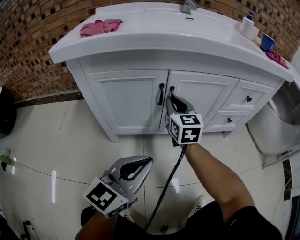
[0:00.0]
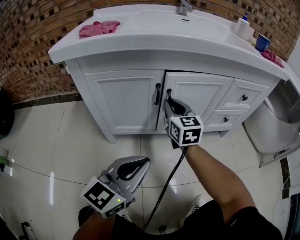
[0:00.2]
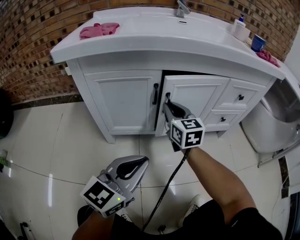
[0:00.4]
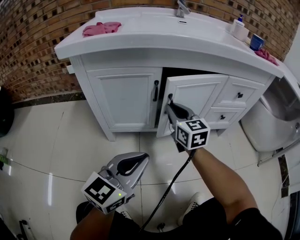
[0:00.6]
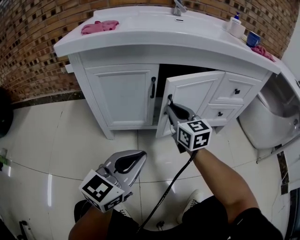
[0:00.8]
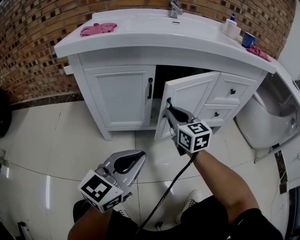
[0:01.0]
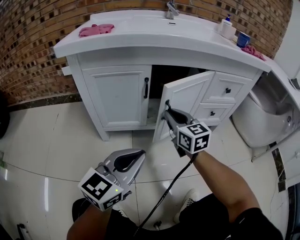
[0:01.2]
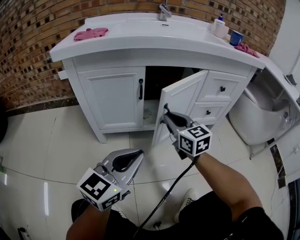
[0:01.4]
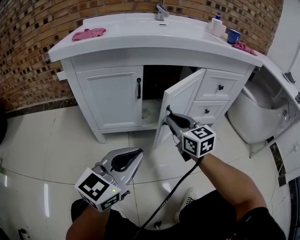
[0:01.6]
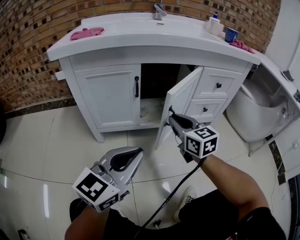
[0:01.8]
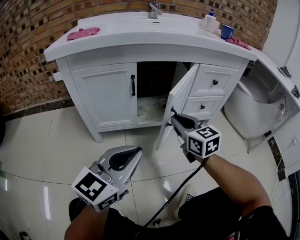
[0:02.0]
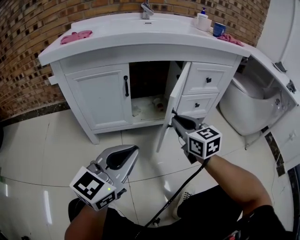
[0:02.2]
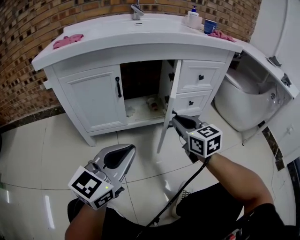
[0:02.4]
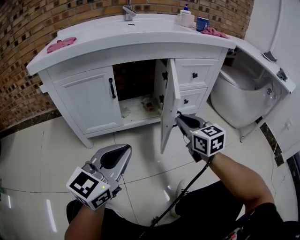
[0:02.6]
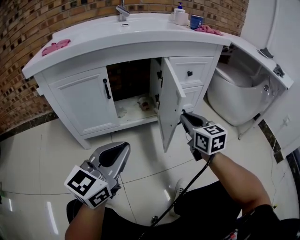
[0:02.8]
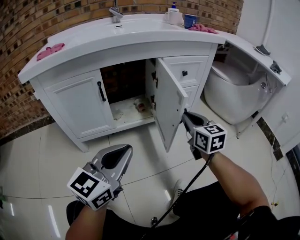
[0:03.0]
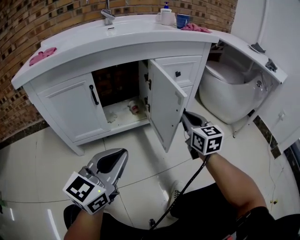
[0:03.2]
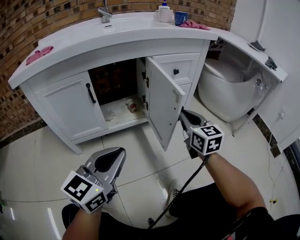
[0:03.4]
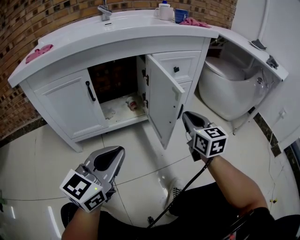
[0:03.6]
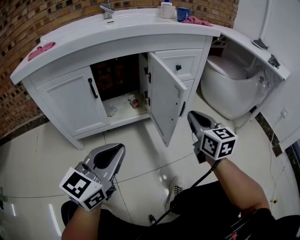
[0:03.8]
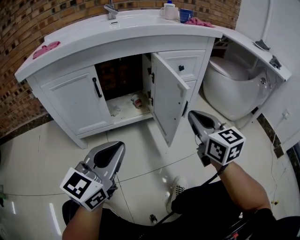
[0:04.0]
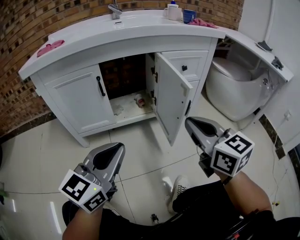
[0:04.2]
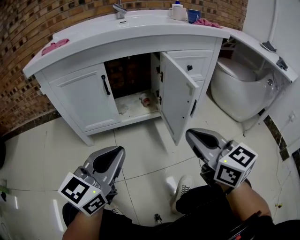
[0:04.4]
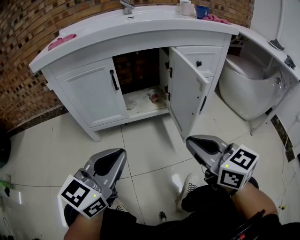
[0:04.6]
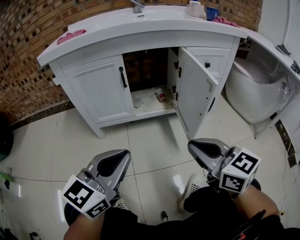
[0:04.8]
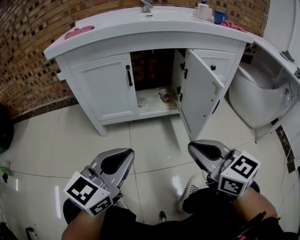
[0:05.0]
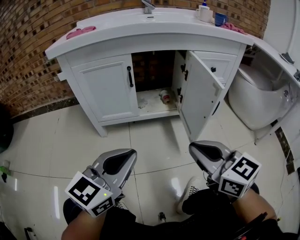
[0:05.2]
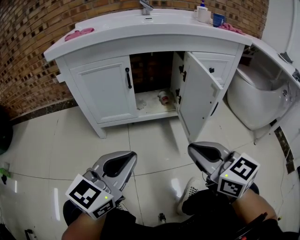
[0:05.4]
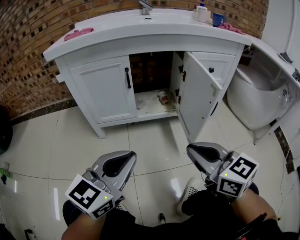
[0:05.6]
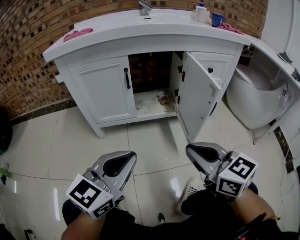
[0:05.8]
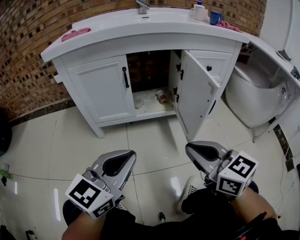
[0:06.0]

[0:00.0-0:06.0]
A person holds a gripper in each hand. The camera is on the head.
0:00.0 to 0:01.6: The right gripper shifts about 15 cm backward and to the right. The left gripper shifts some 5 cm backward.
0:01.6 to 0:03.0: The right gripper shifts some 20 cm to the right, and rotates approximately 20 degrees; the left gripper is displaced to the right by some 10 cm.
0:03.0 to 0:04.4: The right gripper shifts roughly 15 cm backward and upward, and changes its angle by roughly 20 degrees.
0:04.4 to 0:06.0: The right gripper travels to the left by some 5 cm.

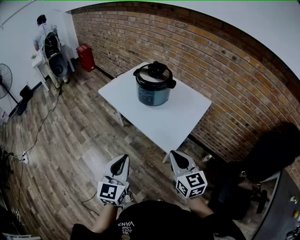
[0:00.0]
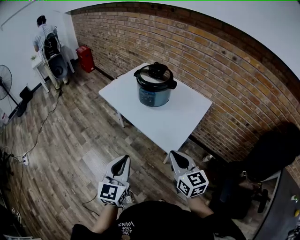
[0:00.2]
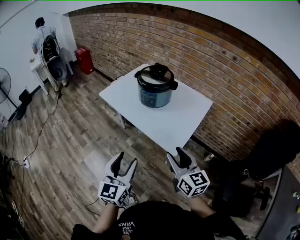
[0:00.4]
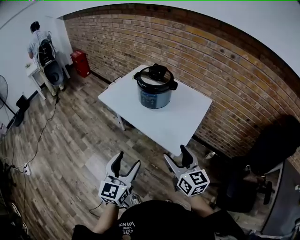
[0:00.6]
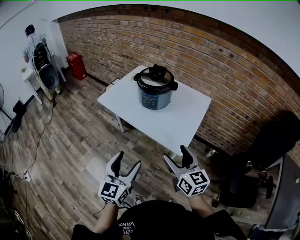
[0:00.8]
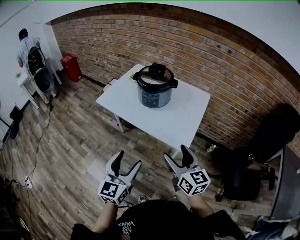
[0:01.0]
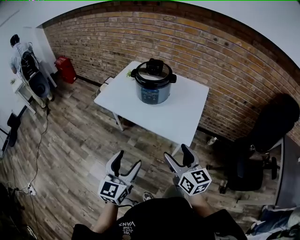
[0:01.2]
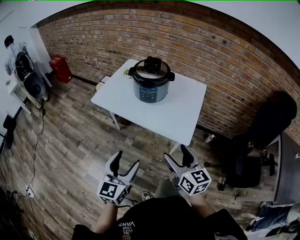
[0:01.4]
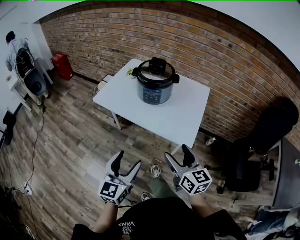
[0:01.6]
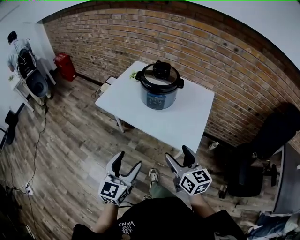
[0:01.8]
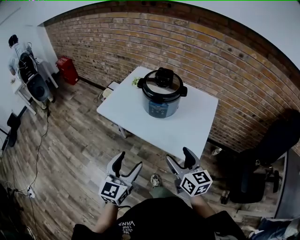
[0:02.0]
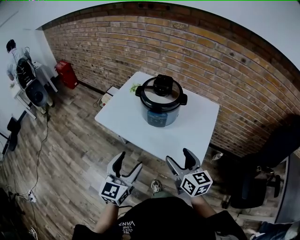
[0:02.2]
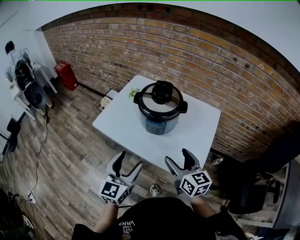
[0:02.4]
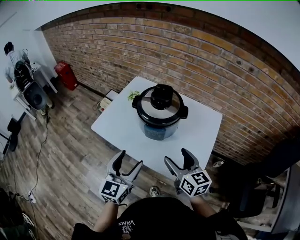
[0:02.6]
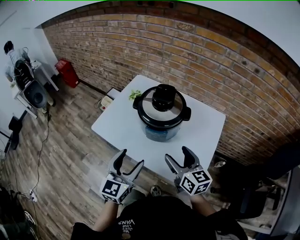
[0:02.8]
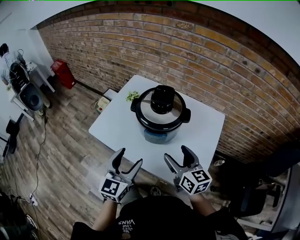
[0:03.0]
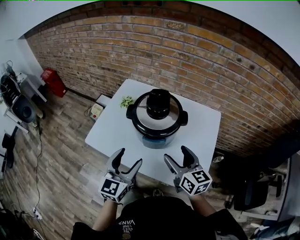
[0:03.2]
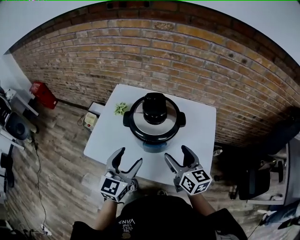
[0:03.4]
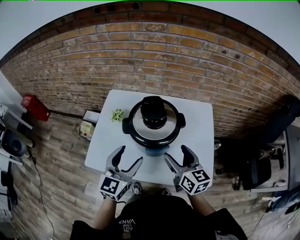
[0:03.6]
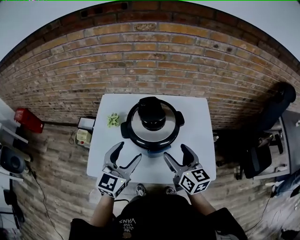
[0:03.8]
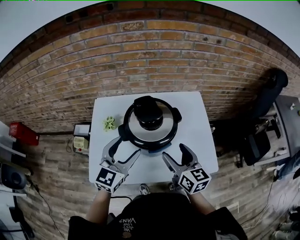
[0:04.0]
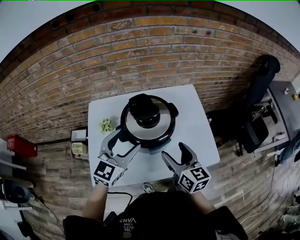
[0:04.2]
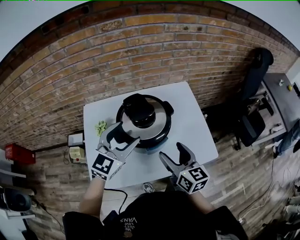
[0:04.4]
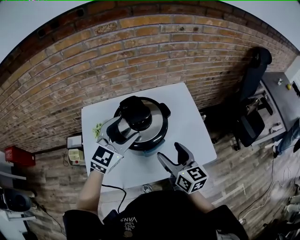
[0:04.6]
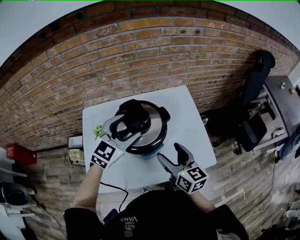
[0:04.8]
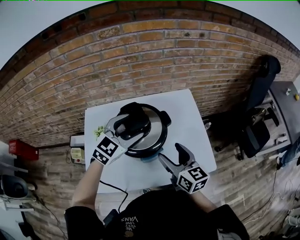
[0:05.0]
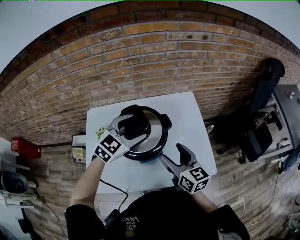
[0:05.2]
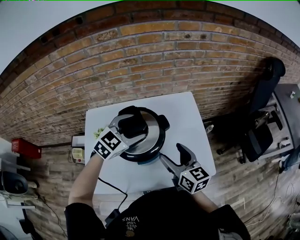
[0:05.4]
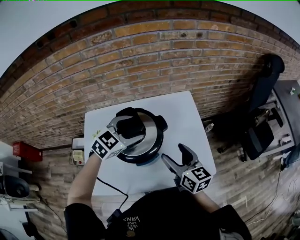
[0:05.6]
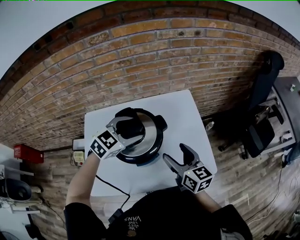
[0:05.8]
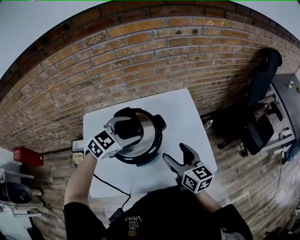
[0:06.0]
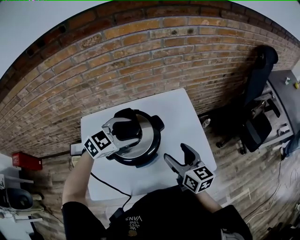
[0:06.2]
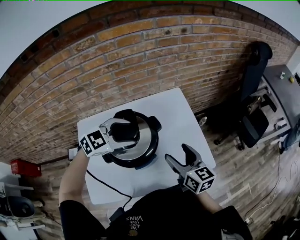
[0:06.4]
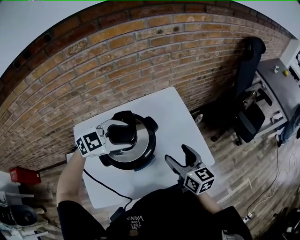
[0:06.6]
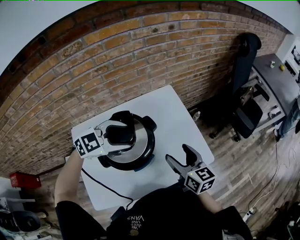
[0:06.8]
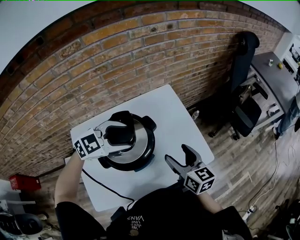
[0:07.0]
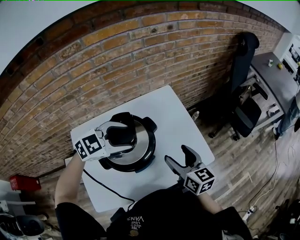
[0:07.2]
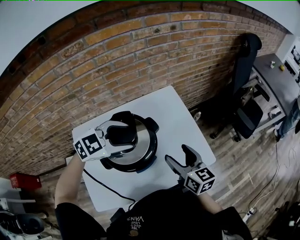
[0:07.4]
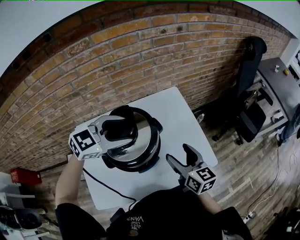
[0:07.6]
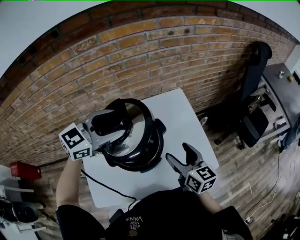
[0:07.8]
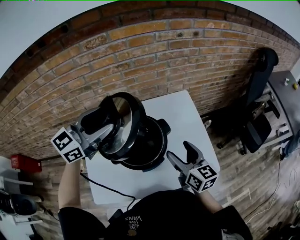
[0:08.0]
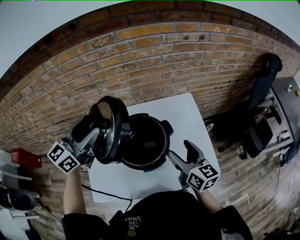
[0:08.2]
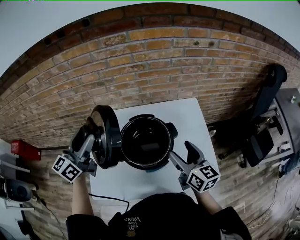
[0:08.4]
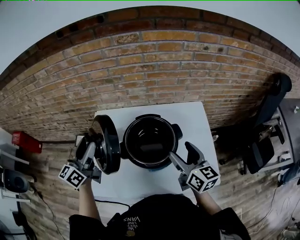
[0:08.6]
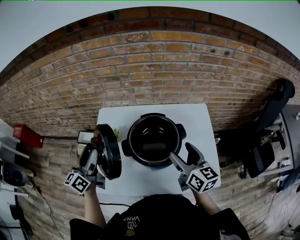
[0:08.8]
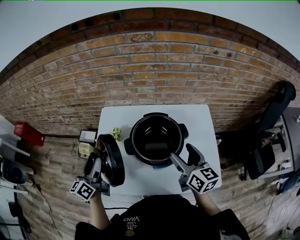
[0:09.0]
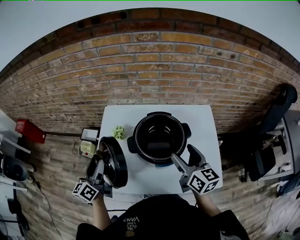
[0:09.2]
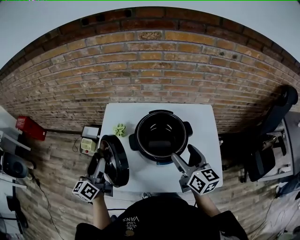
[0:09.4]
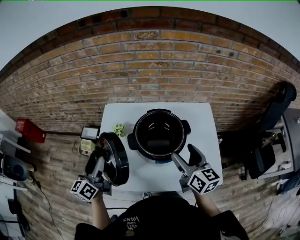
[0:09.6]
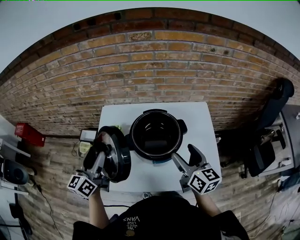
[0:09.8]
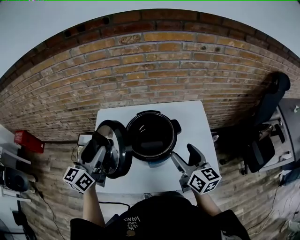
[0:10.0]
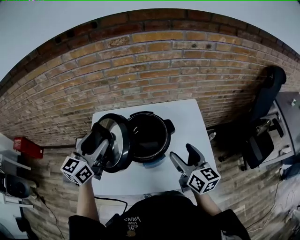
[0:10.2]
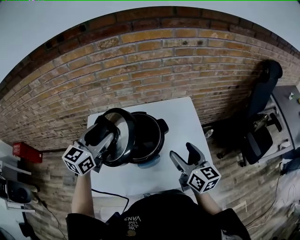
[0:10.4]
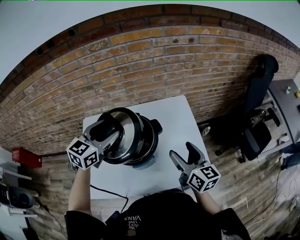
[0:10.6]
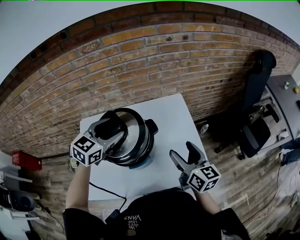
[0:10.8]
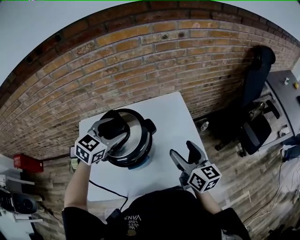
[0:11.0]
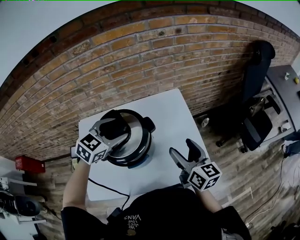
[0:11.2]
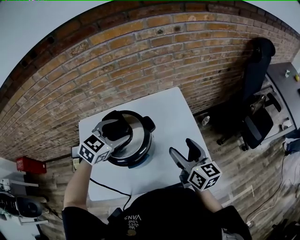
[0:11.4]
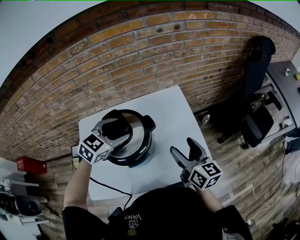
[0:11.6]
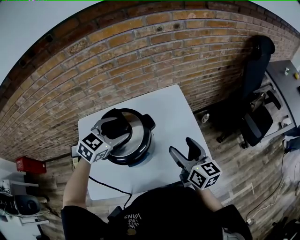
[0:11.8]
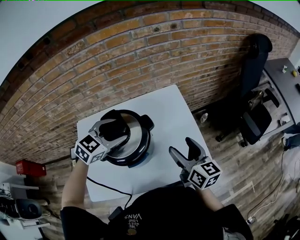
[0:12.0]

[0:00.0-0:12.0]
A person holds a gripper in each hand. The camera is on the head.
0:00.0 to 0:01.6: The right gripper heads to the left, covering some 10 cm, rotates roughly 20 degrees, and opens. The left gripper goes some 15 cm to the left and forward, changes its angle by about 20 degrees, and opens.
0:01.6 to 0:03.0: The grippers both shift forward by roughly 30 cm.
0:03.0 to 0:04.4: The left gripper ends up about 20 cm from where it was, and rotates roughly 50 degrees. Meanwhile the right gripper moves about 5 cm, and rotates about 40 degrees.
0:04.4 to 0:06.0: The grippers both shift forward and to the right by roughly 10 cm. The left gripper turns by some 30 degrees.
0:06.0 to 0:07.6: The left gripper travels upward by some 5 cm.
0:07.6 to 0:09.0: The left gripper changes place by some 35 cm, and swivels approximately 100 degrees, while the right gripper shifts by roughly 10 cm.
0:09.0 to 0:10.4: The right gripper shifts roughly 5 cm to the right, while the left gripper moves to the right, upward and forward, roughly 20 cm, and turns by approximately 50 degrees.
0:10.4 to 0:12.0: The left gripper travels to the right, downward and forward by roughly 15 cm, and changes its angle by some 40 degrees; the right gripper shifts some 5 cm to the right.

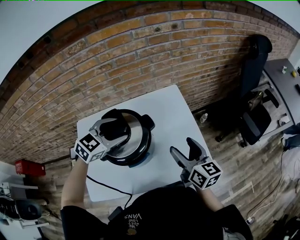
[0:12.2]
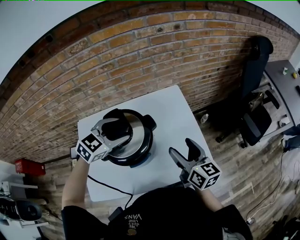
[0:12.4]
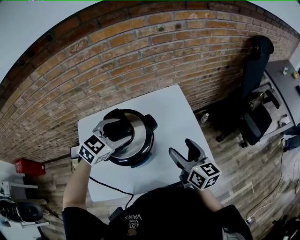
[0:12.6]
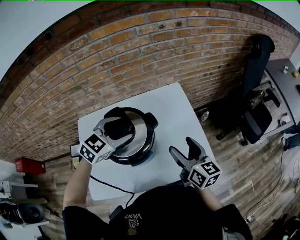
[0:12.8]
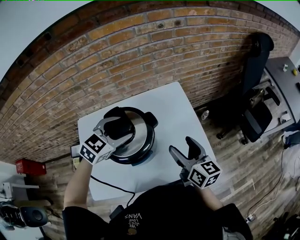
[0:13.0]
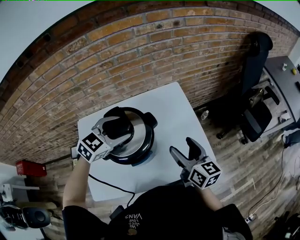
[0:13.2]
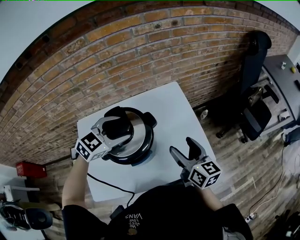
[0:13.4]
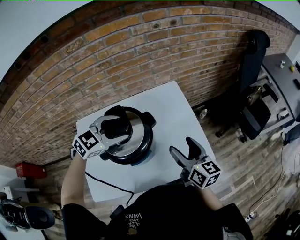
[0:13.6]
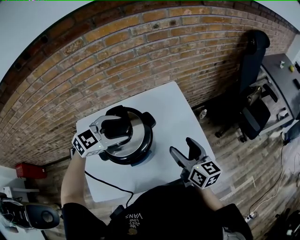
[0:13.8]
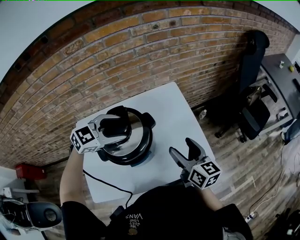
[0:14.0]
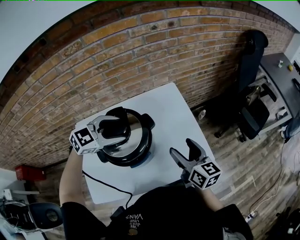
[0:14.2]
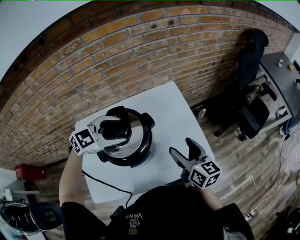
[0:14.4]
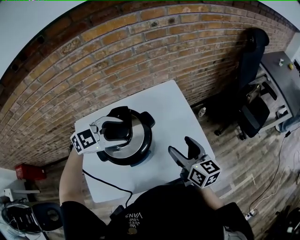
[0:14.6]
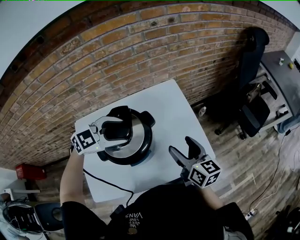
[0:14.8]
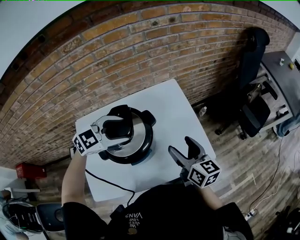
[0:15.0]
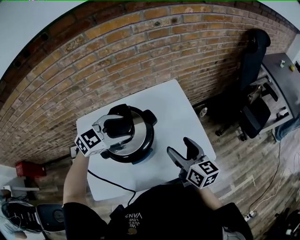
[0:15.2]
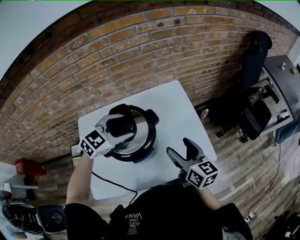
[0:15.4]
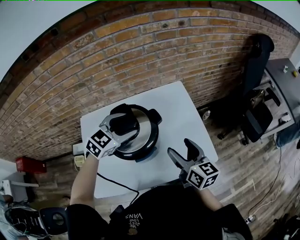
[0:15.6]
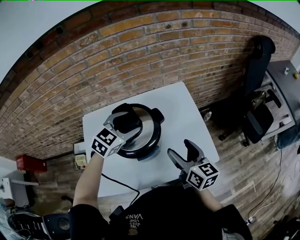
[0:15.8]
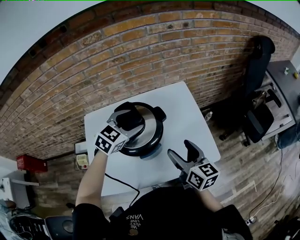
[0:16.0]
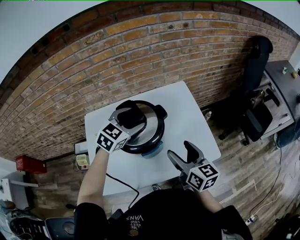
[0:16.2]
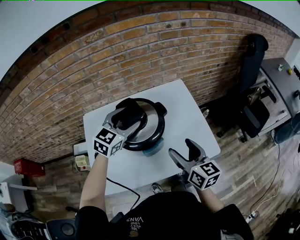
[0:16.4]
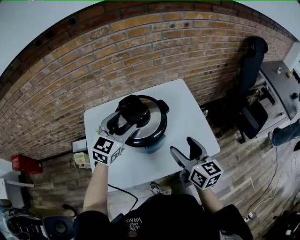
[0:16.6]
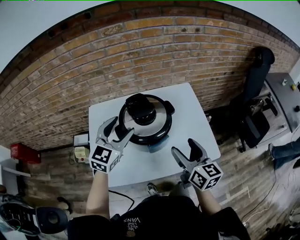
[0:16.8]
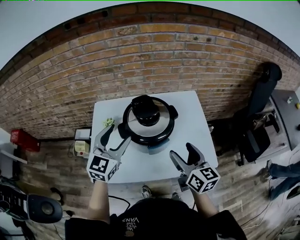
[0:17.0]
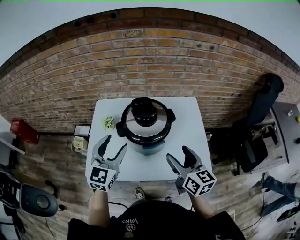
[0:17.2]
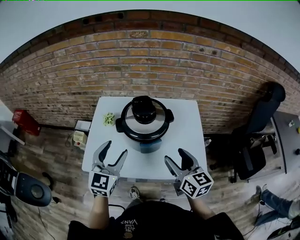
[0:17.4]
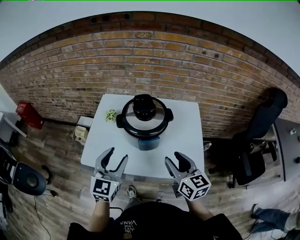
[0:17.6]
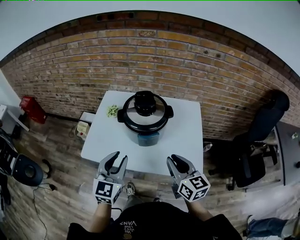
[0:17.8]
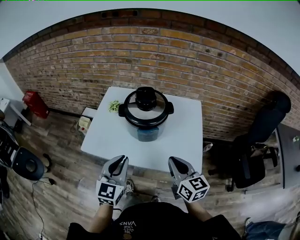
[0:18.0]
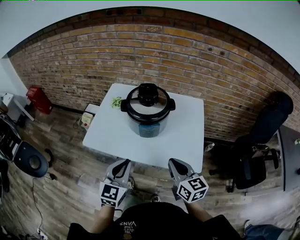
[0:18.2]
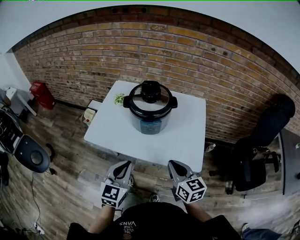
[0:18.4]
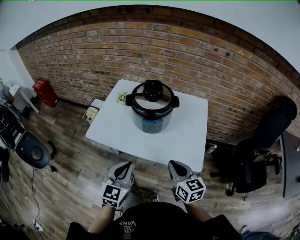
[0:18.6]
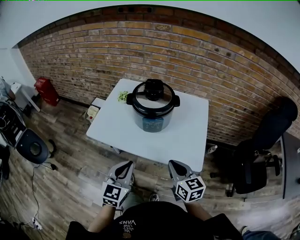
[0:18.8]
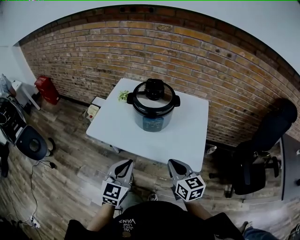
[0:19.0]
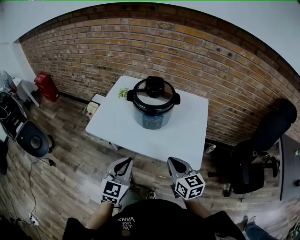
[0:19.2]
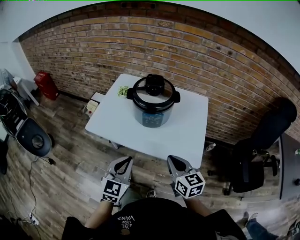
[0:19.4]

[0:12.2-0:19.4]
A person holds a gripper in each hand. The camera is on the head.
0:12.2 to 0:13.6: The grippers stay close to where they were, moving slightly.
0:13.6 to 0:15.0: The grippers make only small movements.
0:15.0 to 0:16.6: The left gripper is displaced to the left by approximately 5 cm, and swivels about 40 degrees. The right gripper shifts some 5 cm backward.
0:16.6 to 0:18.0: The right gripper changes place by roughly 10 cm, turns by approximately 30 degrees, and closes its fingers; the left gripper ends up approximately 30 cm from where it was, turns by about 40 degrees, and closes its fingers.
0:18.0 to 0:19.4: The right gripper ends up some 5 cm from where it was. Meanwhile the left gripper shifts some 10 cm backward.
